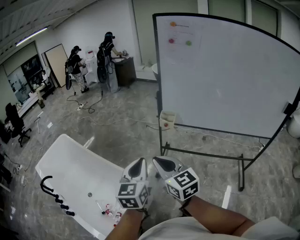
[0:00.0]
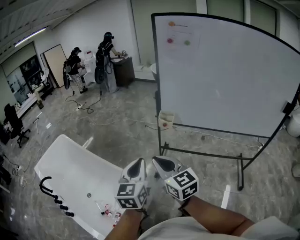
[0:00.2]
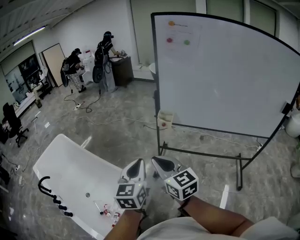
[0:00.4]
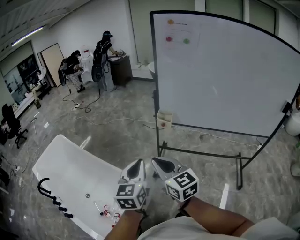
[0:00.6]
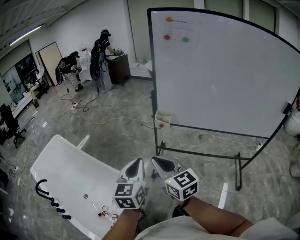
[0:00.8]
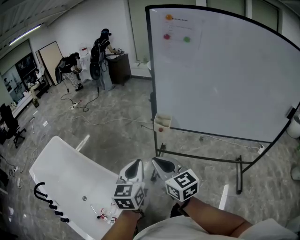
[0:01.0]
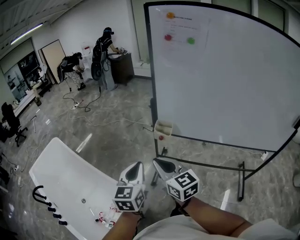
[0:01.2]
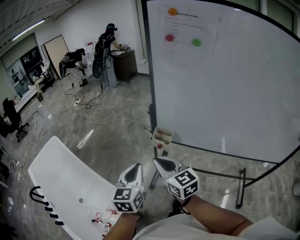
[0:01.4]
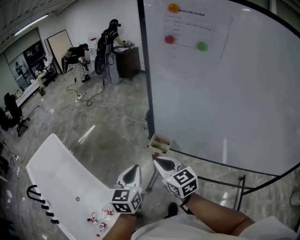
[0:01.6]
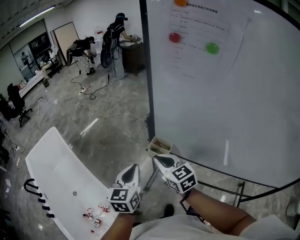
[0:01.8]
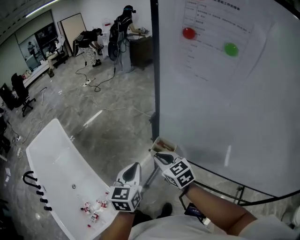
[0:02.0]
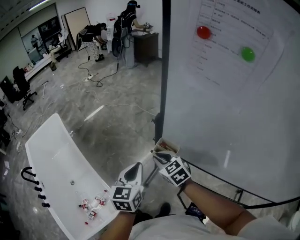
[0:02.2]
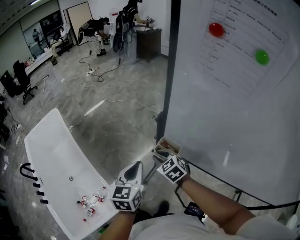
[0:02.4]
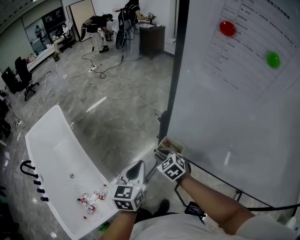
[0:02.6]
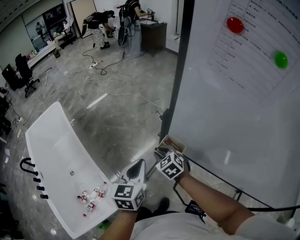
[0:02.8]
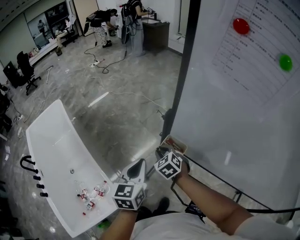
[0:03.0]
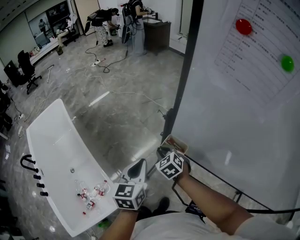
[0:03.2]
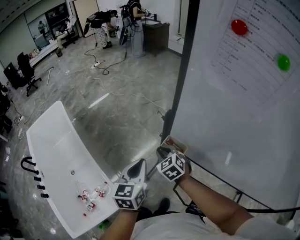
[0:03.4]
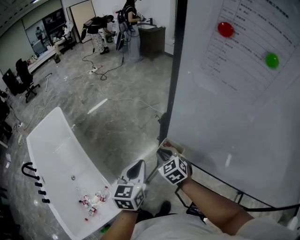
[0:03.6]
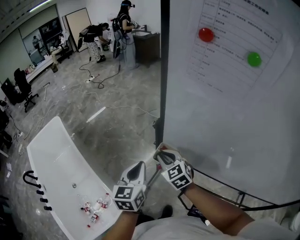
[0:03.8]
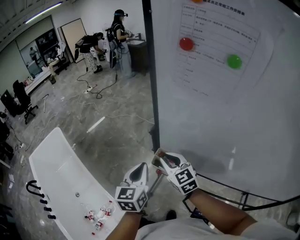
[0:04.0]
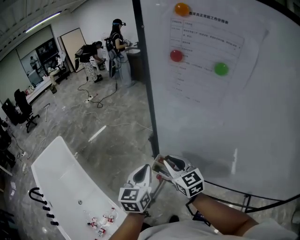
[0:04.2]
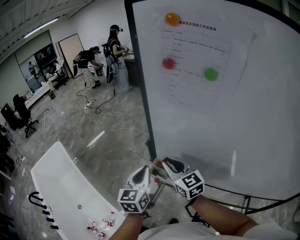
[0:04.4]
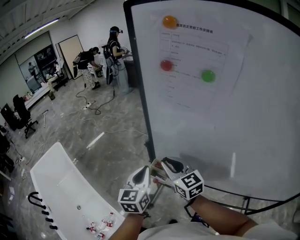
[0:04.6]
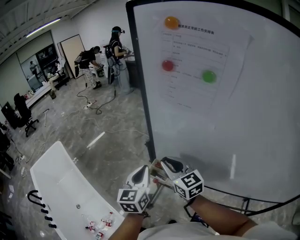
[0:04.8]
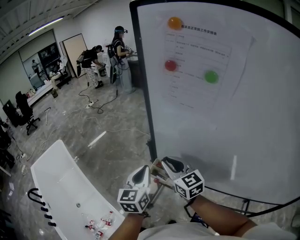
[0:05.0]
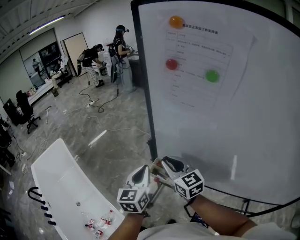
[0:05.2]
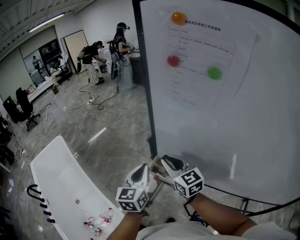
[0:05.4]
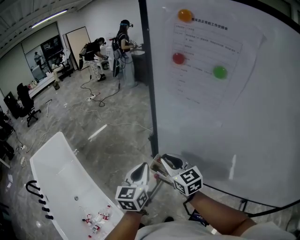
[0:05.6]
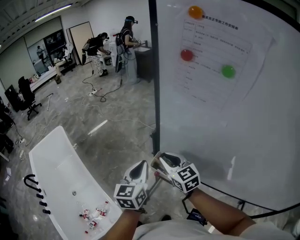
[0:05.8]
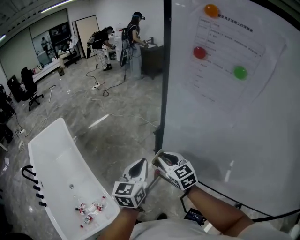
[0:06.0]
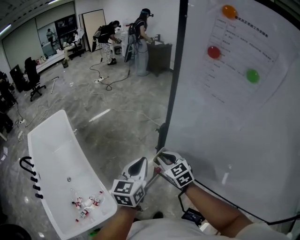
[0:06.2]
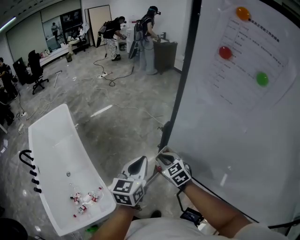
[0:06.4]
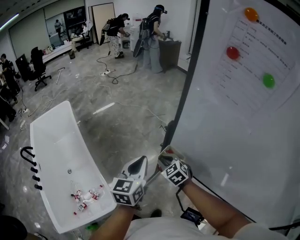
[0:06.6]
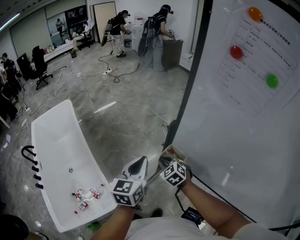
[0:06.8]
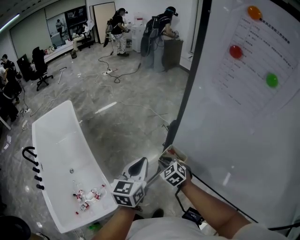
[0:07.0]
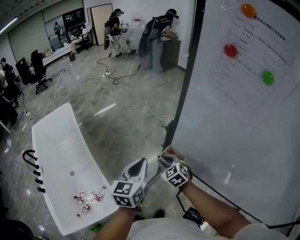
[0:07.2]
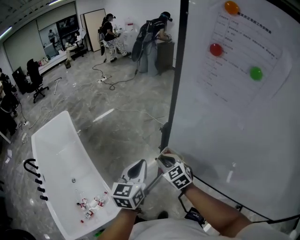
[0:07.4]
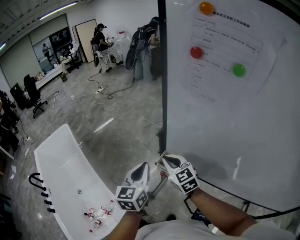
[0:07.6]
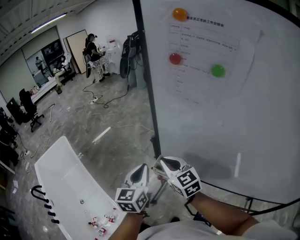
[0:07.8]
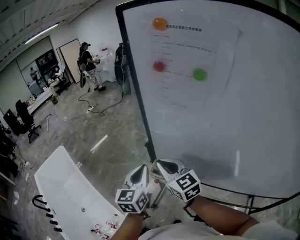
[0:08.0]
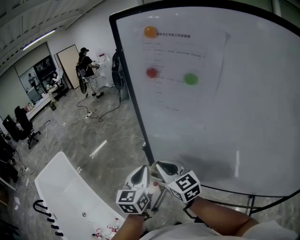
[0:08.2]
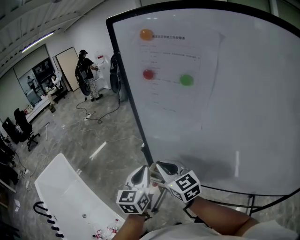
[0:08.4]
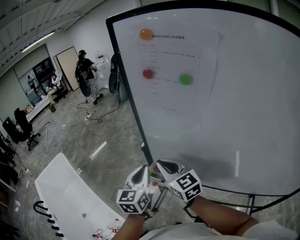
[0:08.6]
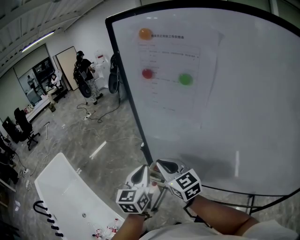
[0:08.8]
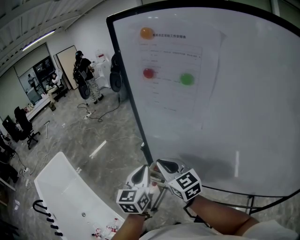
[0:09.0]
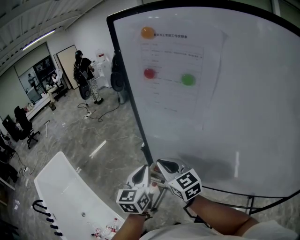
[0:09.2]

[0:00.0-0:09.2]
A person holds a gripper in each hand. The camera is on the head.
0:00.0 to 0:01.6: The two grippers go about 35 cm forward and to the right.
0:01.6 to 0:03.0: The left gripper shifts about 10 cm forward and downward. The right gripper shifts approximately 25 cm downward and forward, and tilts its fingers roughly 30 degrees downward.
0:03.0 to 0:04.6: The right gripper heads upward and to the right, covering approximately 25 cm, and tips its fingers upward by approximately 40 degrees; the left gripper heads upward and to the right, covering roughly 10 cm.
0:04.6 to 0:06.2: The right gripper moves downward and to the left, about 15 cm, and changes its angle by roughly 20 degrees. The left gripper shifts some 5 cm to the left.
0:06.2 to 0:07.6: The right gripper moves some 10 cm downward and comes back.
0:07.6 to 0:09.2: The left gripper heads to the right and upward, covering some 10 cm, while the right gripper heads upward and to the right, covering roughly 10 cm.

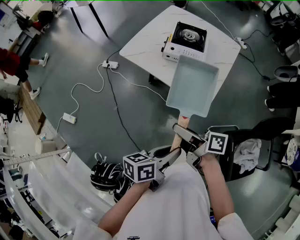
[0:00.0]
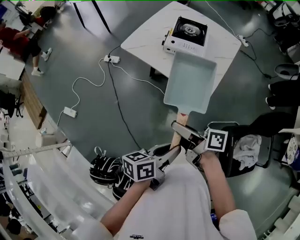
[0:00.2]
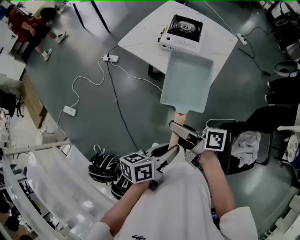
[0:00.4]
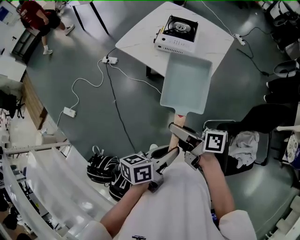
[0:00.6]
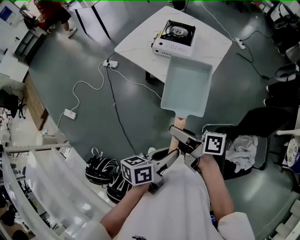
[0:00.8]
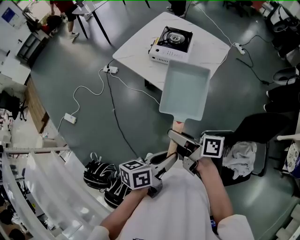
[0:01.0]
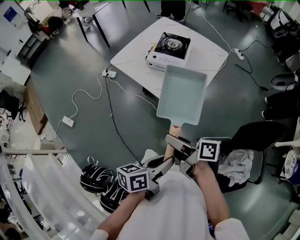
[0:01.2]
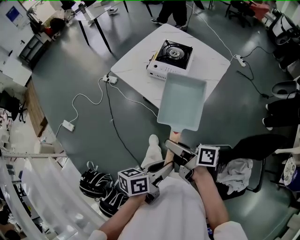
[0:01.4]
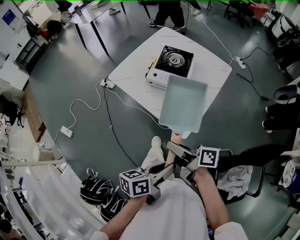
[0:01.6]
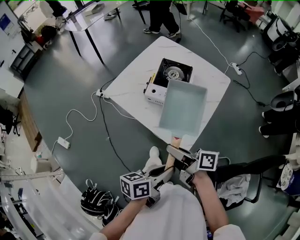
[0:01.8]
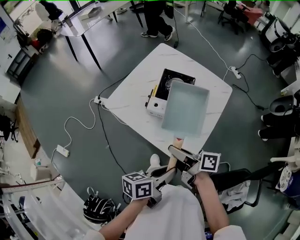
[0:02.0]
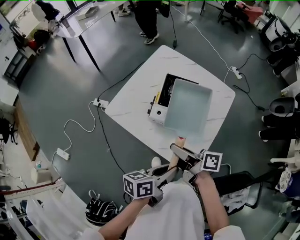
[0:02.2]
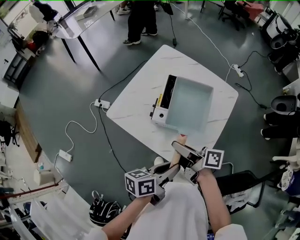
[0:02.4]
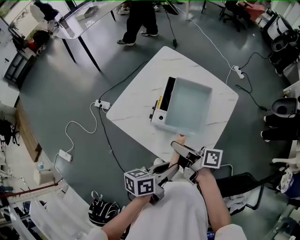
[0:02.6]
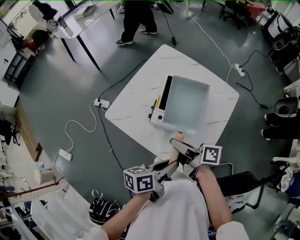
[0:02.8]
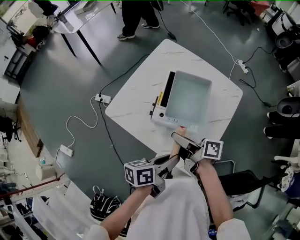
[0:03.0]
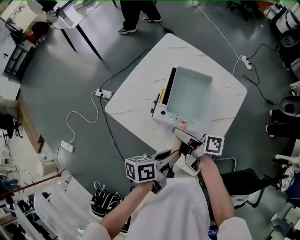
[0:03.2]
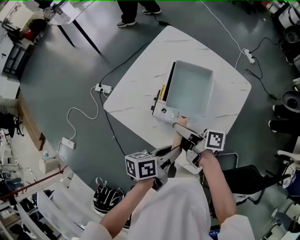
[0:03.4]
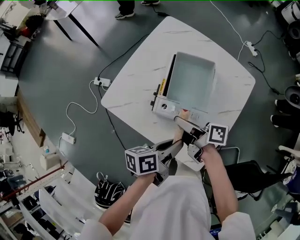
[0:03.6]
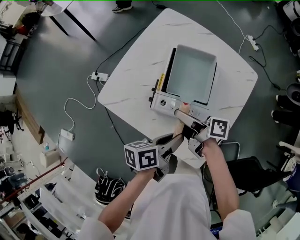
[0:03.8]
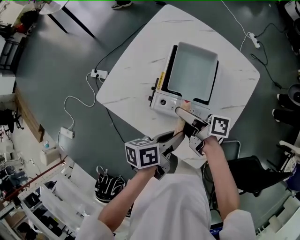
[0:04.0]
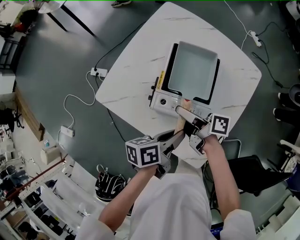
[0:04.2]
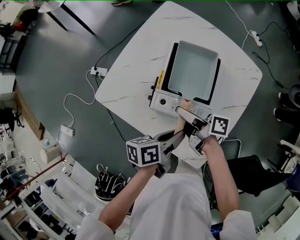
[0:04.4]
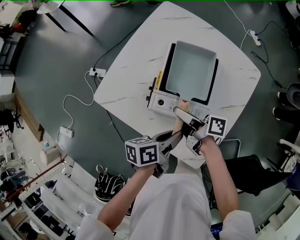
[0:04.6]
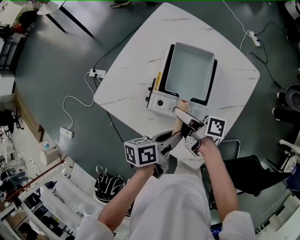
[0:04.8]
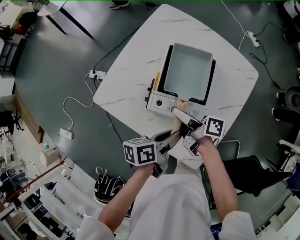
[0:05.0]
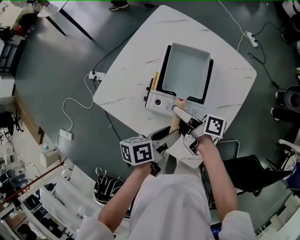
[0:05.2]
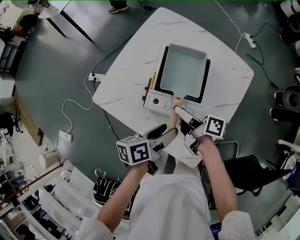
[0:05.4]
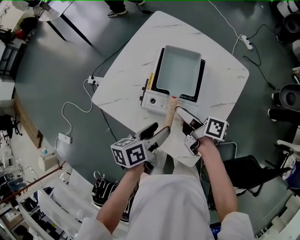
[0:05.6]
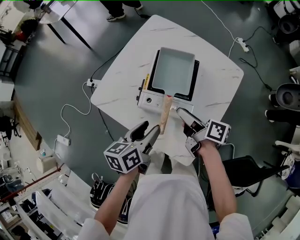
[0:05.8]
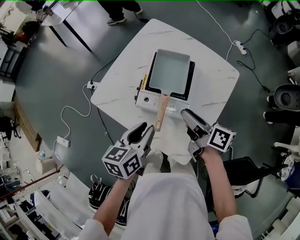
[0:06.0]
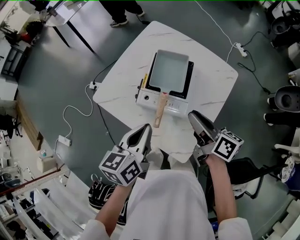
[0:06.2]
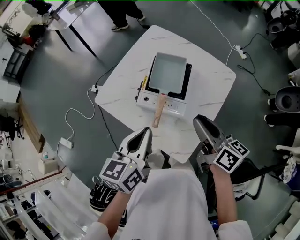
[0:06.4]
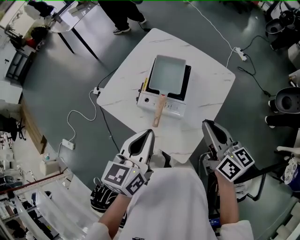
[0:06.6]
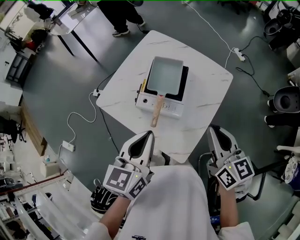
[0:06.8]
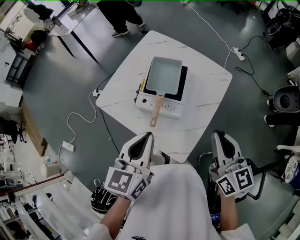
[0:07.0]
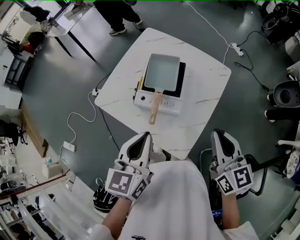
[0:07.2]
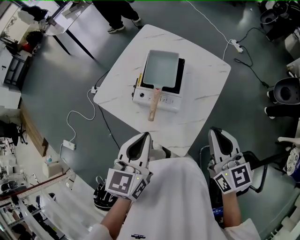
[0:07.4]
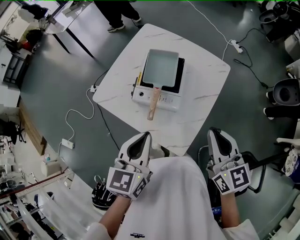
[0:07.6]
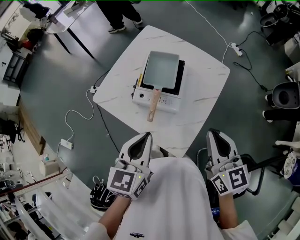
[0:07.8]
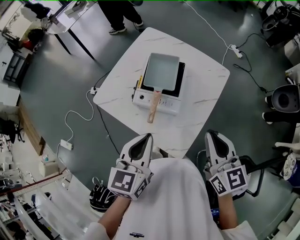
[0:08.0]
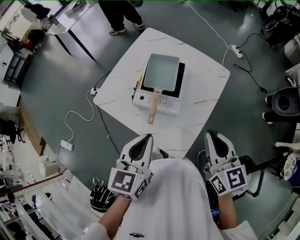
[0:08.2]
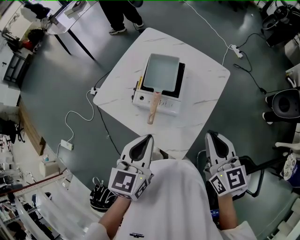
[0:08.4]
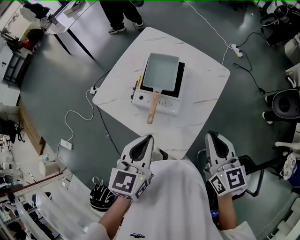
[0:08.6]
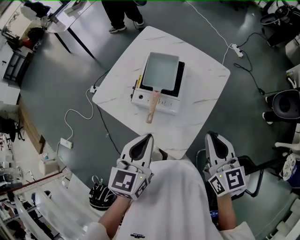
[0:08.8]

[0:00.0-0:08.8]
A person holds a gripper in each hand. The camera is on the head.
0:00.0 to 0:01.4: The grippers both shift to the right by some 15 cm.
0:01.4 to 0:03.0: The two grippers go roughly 35 cm forward.
0:03.0 to 0:04.4: The grippers both shift downward and forward by approximately 15 cm.
0:04.4 to 0:05.8: The right gripper moves to the right and upward, approximately 10 cm, and opens its fingers; the left gripper goes some 5 cm upward, rotates some 30 degrees, and opens.
0:05.8 to 0:07.4: The left gripper shifts approximately 20 cm upward and backward, changes its angle by some 30 degrees, and closes. Meanwhile the right gripper travels upward, to the right and backward by roughly 30 cm, twists some 60 degrees counterclockwise, seen from behind, and closes its fingers.
0:07.4 to 0:08.8: The grippers move only a little.

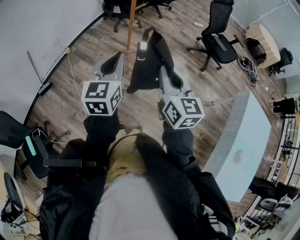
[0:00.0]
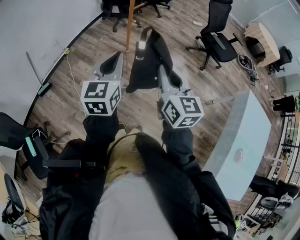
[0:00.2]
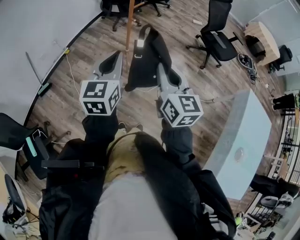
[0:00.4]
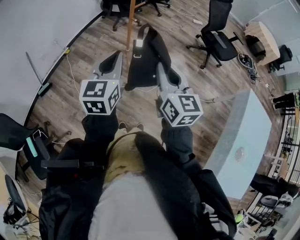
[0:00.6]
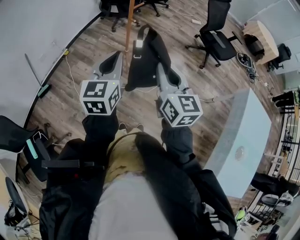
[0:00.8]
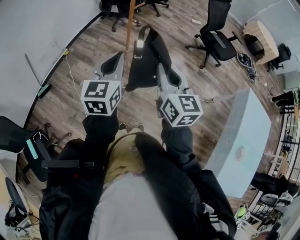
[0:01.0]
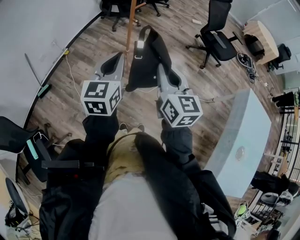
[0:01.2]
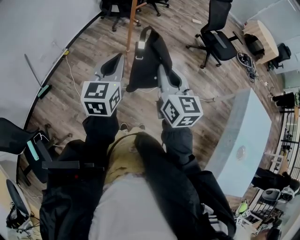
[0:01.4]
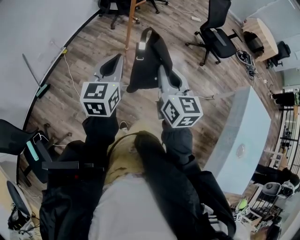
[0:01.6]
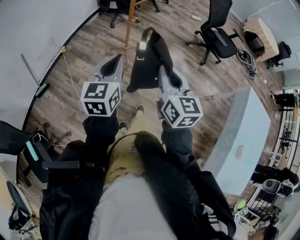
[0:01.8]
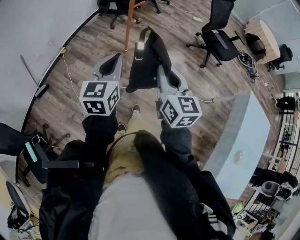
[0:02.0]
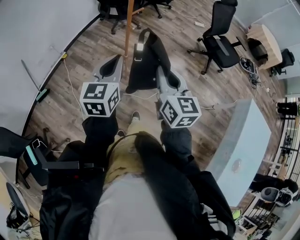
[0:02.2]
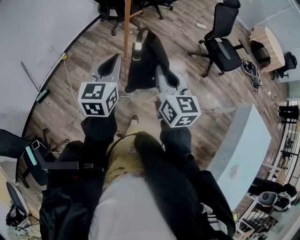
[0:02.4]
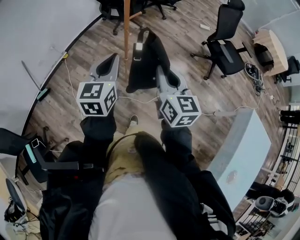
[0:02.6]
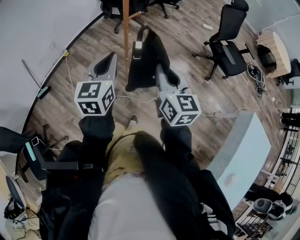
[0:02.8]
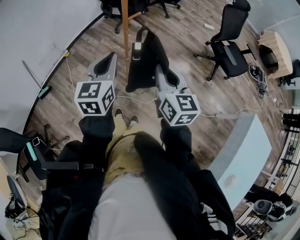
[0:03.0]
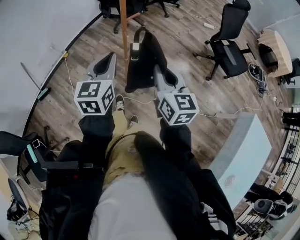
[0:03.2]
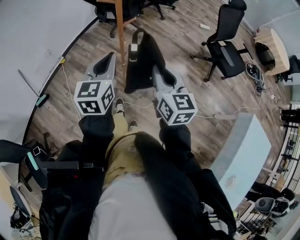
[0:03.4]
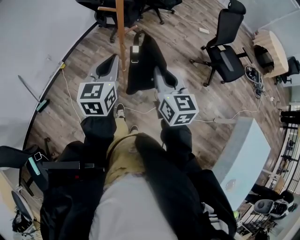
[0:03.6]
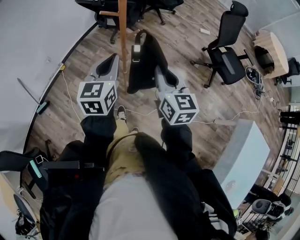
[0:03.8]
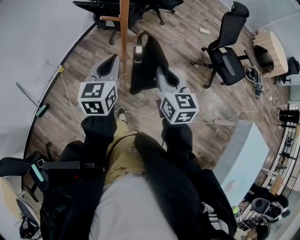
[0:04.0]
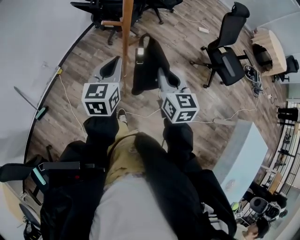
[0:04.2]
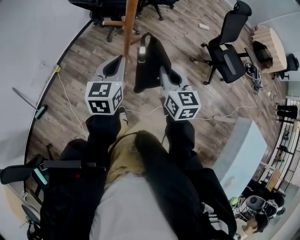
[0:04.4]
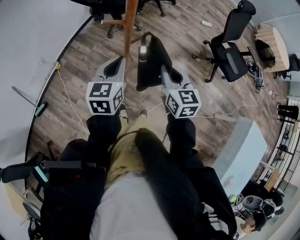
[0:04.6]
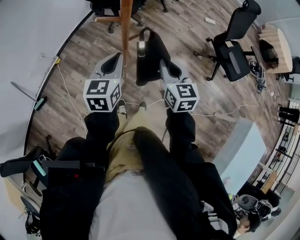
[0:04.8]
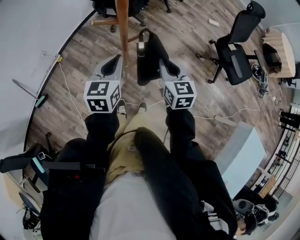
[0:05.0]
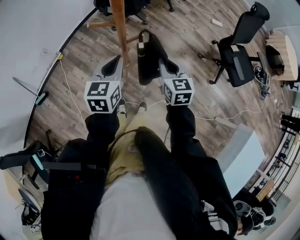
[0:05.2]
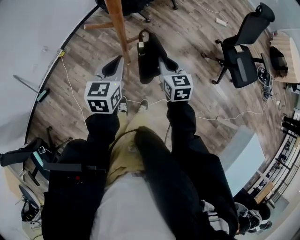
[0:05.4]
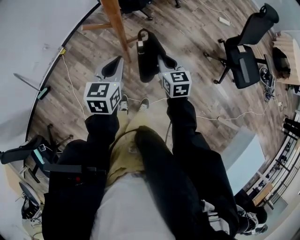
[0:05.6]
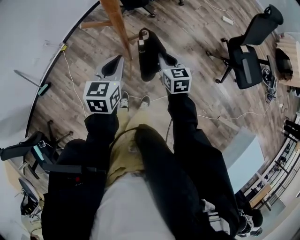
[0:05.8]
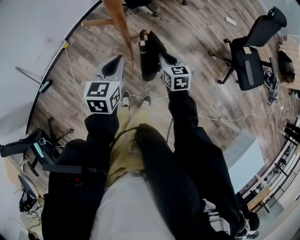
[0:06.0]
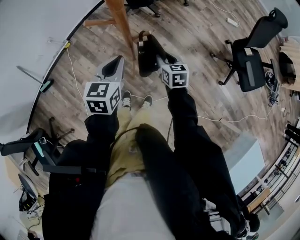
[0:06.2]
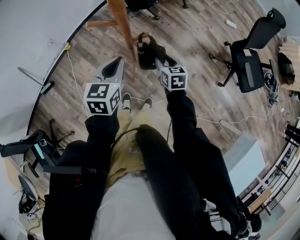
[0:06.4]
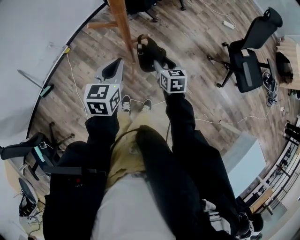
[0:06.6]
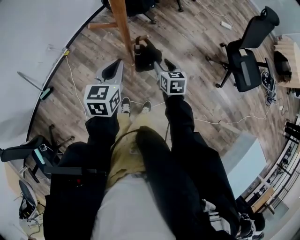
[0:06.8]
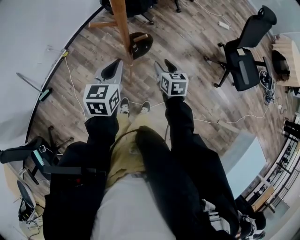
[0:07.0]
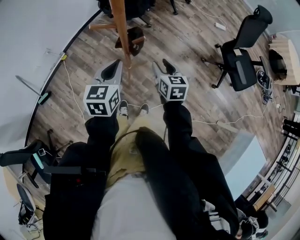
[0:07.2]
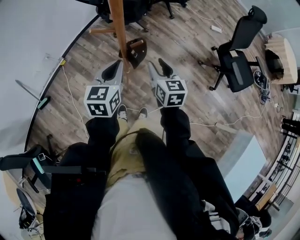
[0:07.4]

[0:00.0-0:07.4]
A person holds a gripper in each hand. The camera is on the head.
0:00.0 to 0:01.4: The grippers stay close to where they were, moving slightly.
0:01.4 to 0:03.0: The grippers both shift forward by about 20 cm.
0:03.0 to 0:04.4: The grippers both shift forward by approximately 20 cm.
0:04.4 to 0:06.0: The right gripper is displaced downward and forward by some 25 cm, and rotates roughly 20 degrees, while the left gripper travels downward and forward by roughly 10 cm.
0:06.0 to 0:07.4: The right gripper goes some 10 cm upward, and opens, while the left gripper heads upward, covering some 5 cm.
